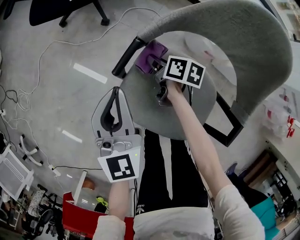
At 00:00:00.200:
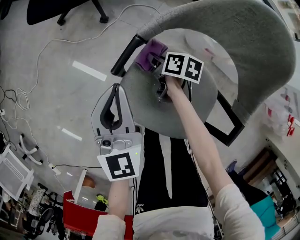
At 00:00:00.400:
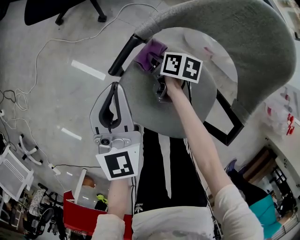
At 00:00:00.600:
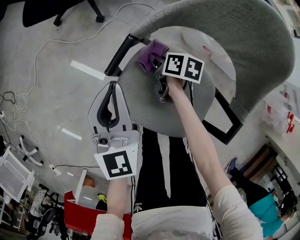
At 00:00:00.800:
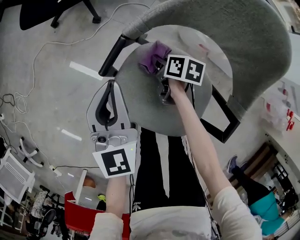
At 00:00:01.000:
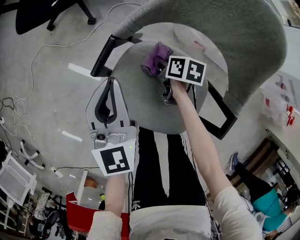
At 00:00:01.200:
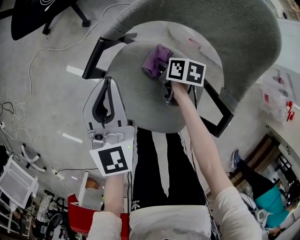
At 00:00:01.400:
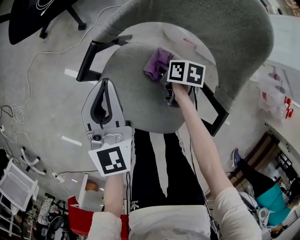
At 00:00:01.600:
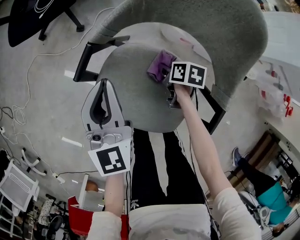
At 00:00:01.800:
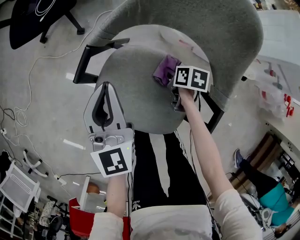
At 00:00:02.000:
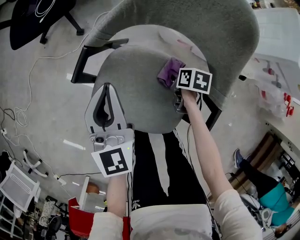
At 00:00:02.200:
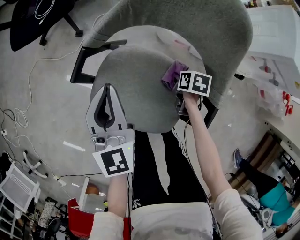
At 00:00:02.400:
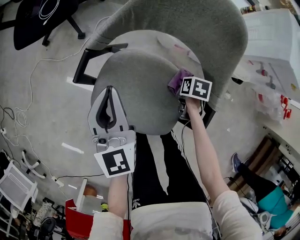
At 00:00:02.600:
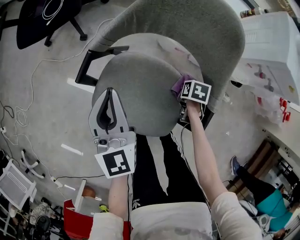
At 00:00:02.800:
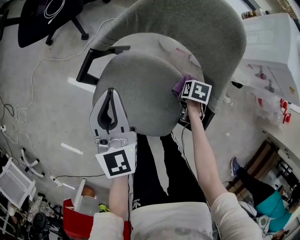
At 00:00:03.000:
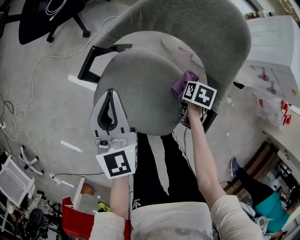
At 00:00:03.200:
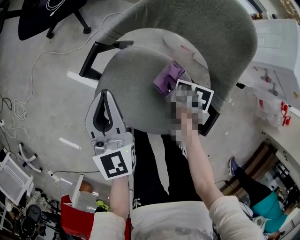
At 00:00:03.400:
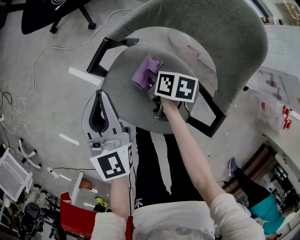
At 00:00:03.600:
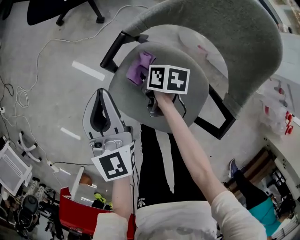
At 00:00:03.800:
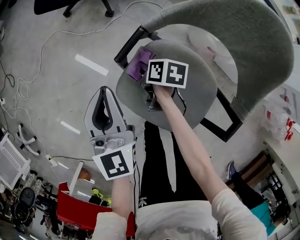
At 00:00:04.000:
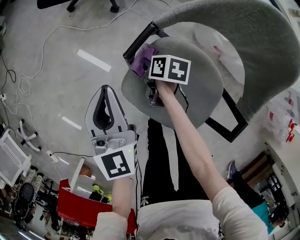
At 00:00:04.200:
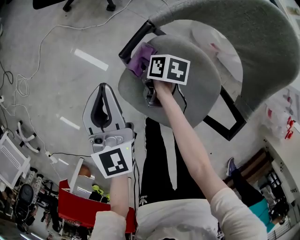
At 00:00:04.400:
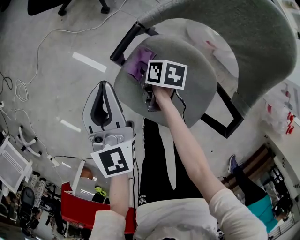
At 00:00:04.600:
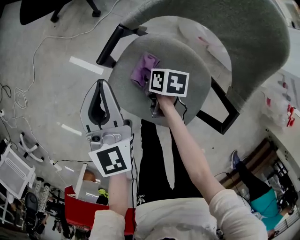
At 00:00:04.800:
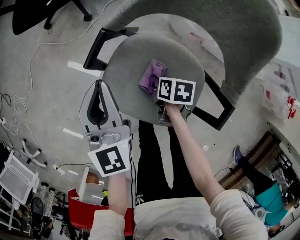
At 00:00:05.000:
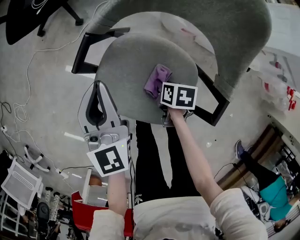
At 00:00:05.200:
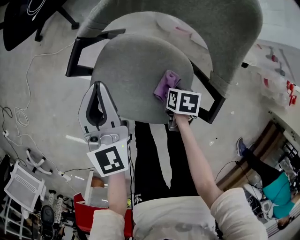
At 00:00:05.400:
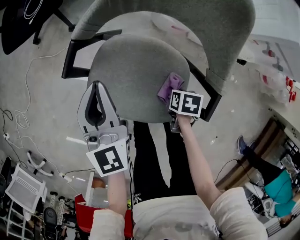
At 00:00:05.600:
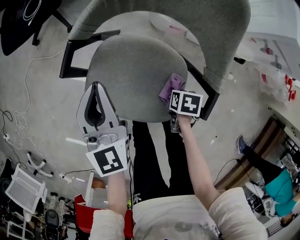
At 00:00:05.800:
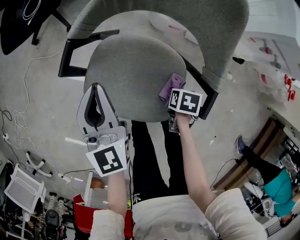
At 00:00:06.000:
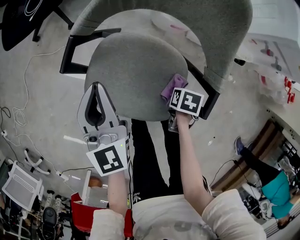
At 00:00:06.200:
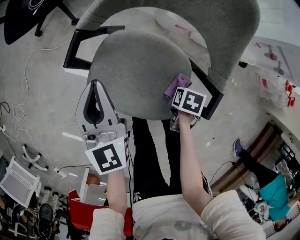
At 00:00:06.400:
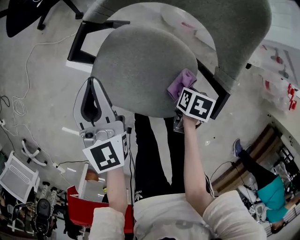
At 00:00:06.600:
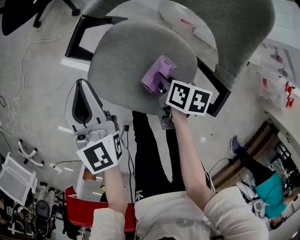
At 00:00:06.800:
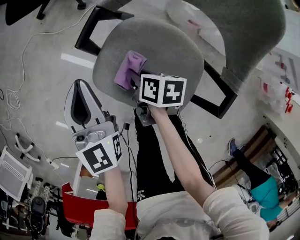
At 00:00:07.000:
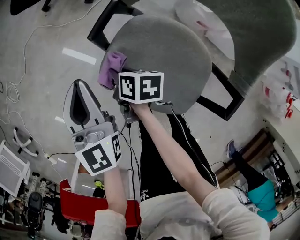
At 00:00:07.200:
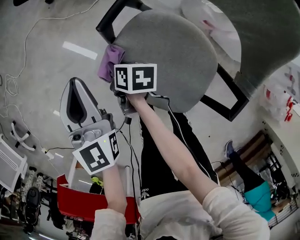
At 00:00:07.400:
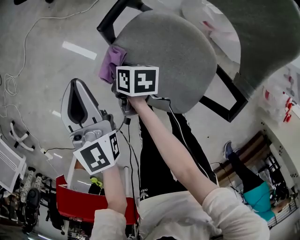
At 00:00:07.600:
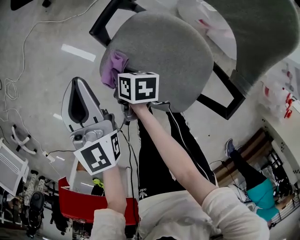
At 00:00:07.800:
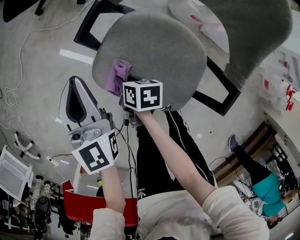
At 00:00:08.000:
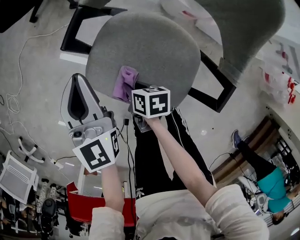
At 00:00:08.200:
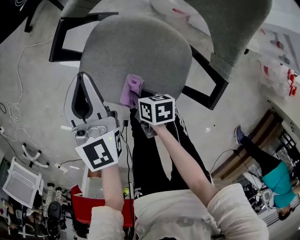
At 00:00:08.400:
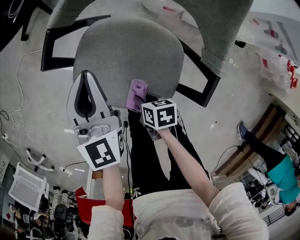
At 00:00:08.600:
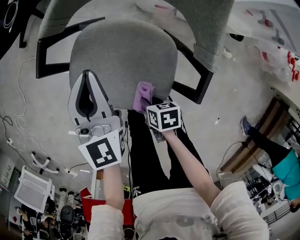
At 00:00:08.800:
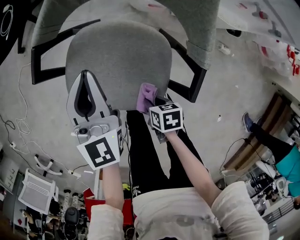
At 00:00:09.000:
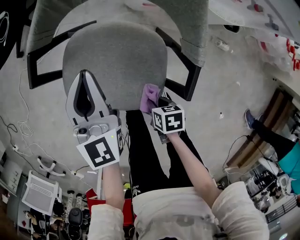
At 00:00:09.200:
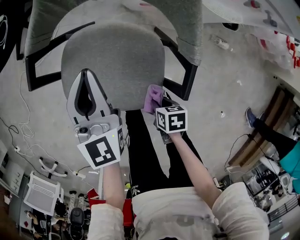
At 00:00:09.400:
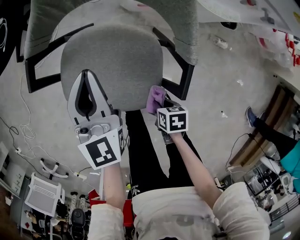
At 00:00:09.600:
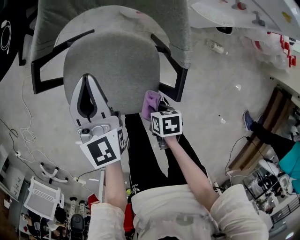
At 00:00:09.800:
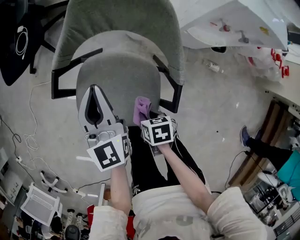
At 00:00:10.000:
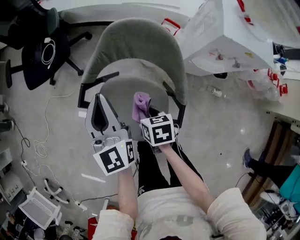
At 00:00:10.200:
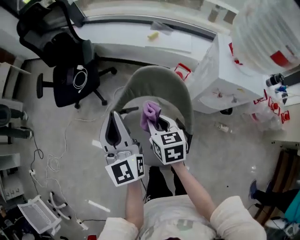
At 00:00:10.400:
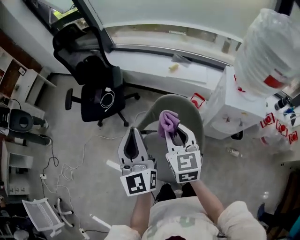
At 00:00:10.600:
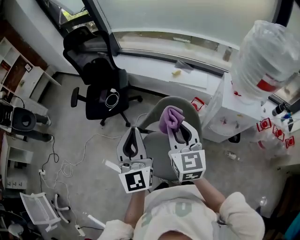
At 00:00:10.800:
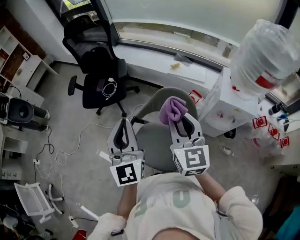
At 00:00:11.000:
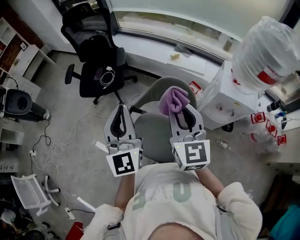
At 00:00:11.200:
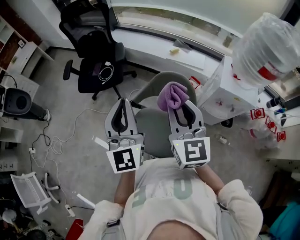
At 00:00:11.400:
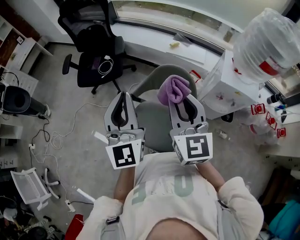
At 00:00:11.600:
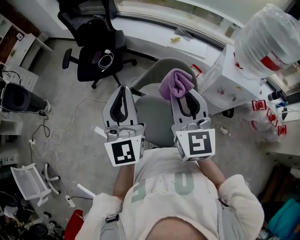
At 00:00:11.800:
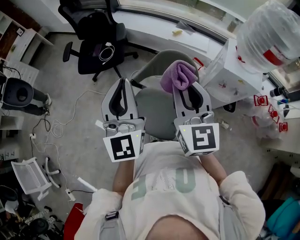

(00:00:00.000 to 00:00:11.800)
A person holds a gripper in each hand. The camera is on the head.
00:00:00.000 - 00:00:01.400: The left gripper shifts roughly 5 cm to the right, while the right gripper shifts roughly 15 cm to the right and backward.
00:00:01.400 - 00:00:03.000: The left gripper changes place by roughly 5 cm. The right gripper shifts by approximately 15 cm, and rotates some 20 degrees.
00:00:03.000 - 00:00:04.400: The right gripper changes place by some 30 cm, and changes its angle by roughly 30 degrees, while the left gripper ends up roughly 15 cm from where it was.
00:00:04.400 - 00:00:06.000: The right gripper changes place by about 35 cm, and points its fingers roughly 30 degrees further downward. Meanwhile the left gripper changes place by some 15 cm.
00:00:06.000 - 00:00:07.400: The right gripper shifts by approximately 35 cm, and points its fingers approximately 40 degrees further upward, while the left gripper ends up about 20 cm from where it was.
00:00:07.400 - 00:00:08.800: The right gripper heads backward and to the right, covering roughly 30 cm; the left gripper heads to the right, covering about 25 cm, and swivels about 30 degrees.
00:00:08.800 - 00:00:10.400: The left gripper is displaced upward by approximately 40 cm, and swivels roughly 30 degrees; the right gripper goes about 60 cm upward and forward, and tilts its fingers roughly 50 degrees upward.
00:00:10.400 - 00:00:11.800: The grippers both shift upward and backward by about 15 cm.

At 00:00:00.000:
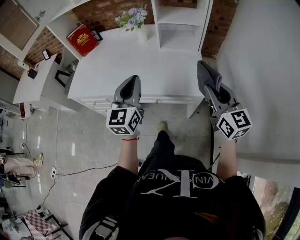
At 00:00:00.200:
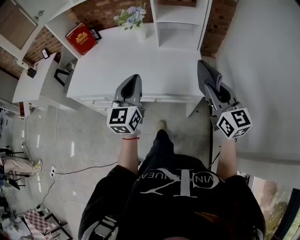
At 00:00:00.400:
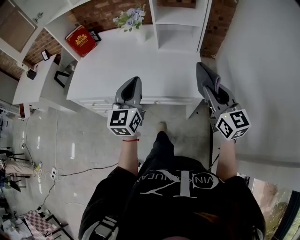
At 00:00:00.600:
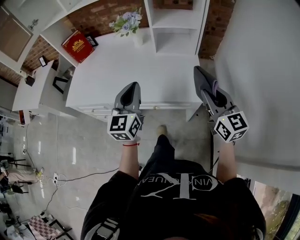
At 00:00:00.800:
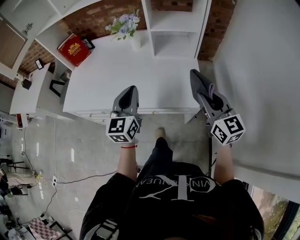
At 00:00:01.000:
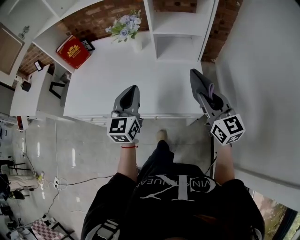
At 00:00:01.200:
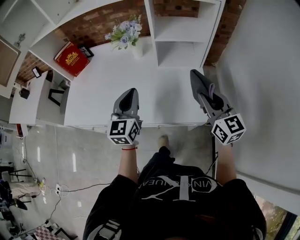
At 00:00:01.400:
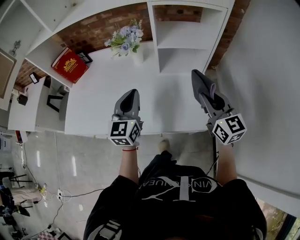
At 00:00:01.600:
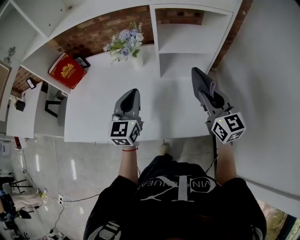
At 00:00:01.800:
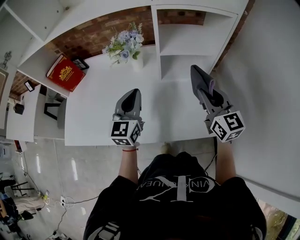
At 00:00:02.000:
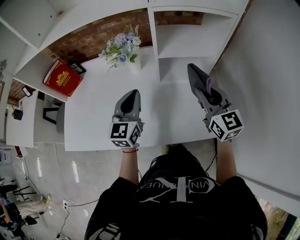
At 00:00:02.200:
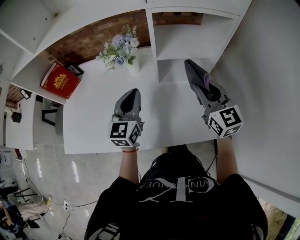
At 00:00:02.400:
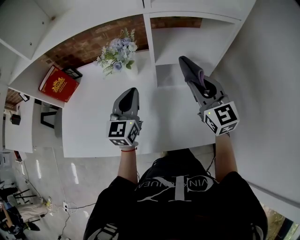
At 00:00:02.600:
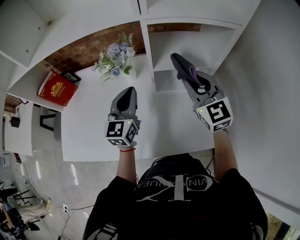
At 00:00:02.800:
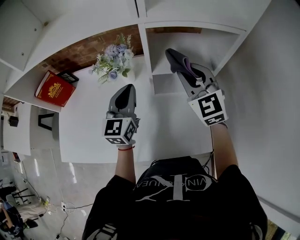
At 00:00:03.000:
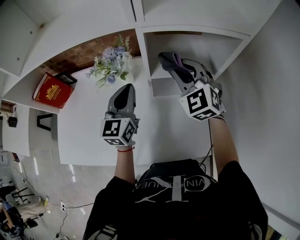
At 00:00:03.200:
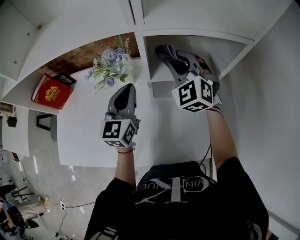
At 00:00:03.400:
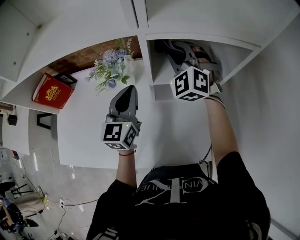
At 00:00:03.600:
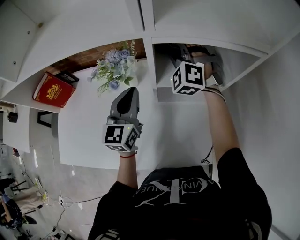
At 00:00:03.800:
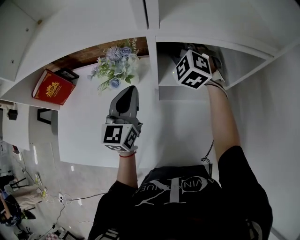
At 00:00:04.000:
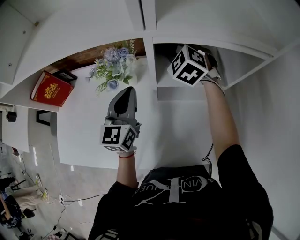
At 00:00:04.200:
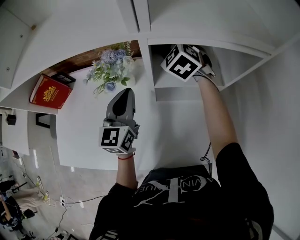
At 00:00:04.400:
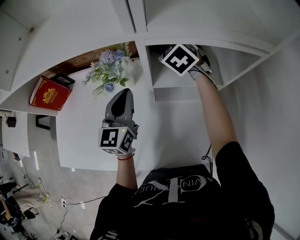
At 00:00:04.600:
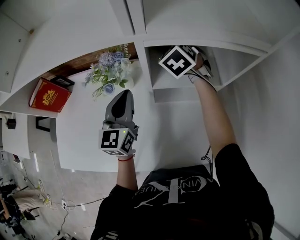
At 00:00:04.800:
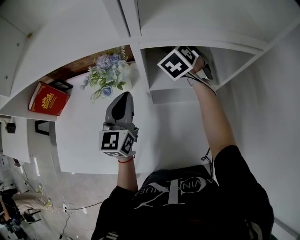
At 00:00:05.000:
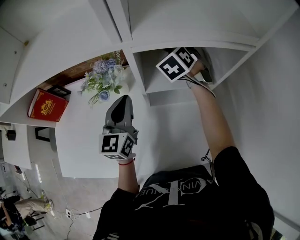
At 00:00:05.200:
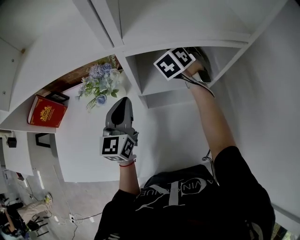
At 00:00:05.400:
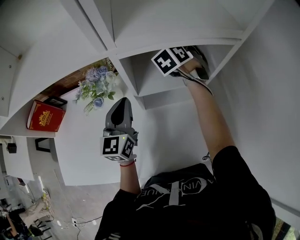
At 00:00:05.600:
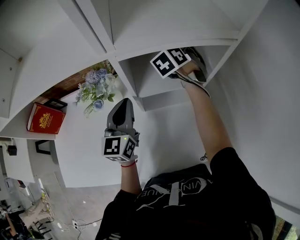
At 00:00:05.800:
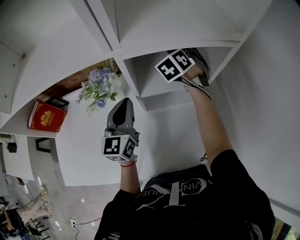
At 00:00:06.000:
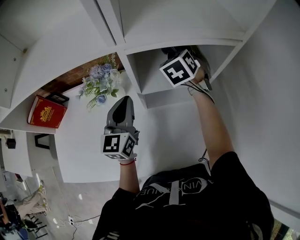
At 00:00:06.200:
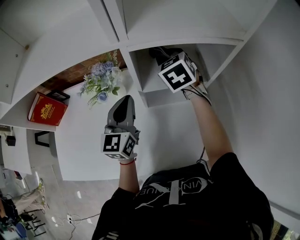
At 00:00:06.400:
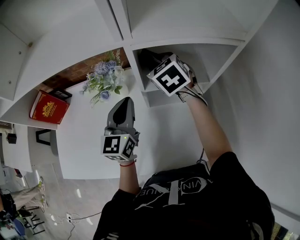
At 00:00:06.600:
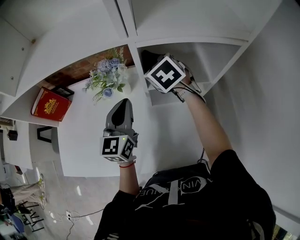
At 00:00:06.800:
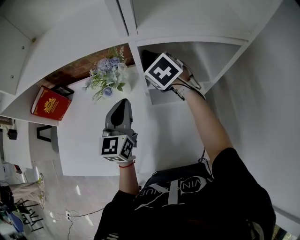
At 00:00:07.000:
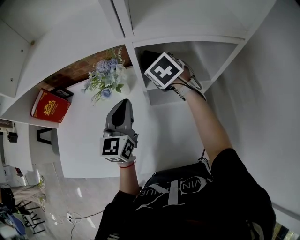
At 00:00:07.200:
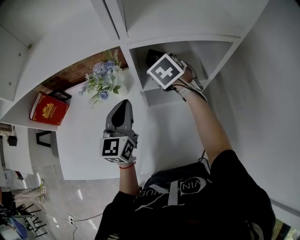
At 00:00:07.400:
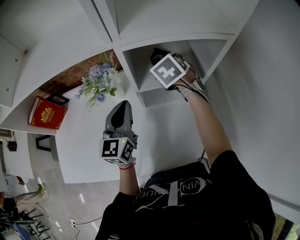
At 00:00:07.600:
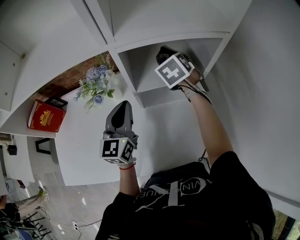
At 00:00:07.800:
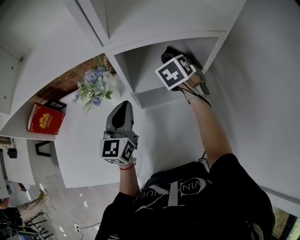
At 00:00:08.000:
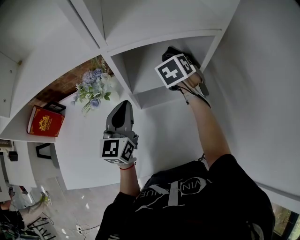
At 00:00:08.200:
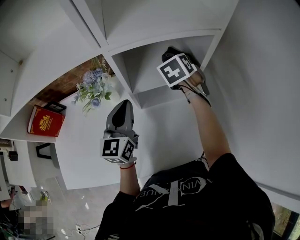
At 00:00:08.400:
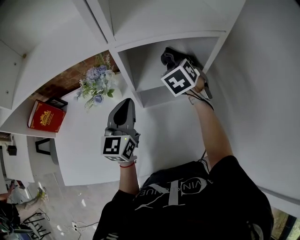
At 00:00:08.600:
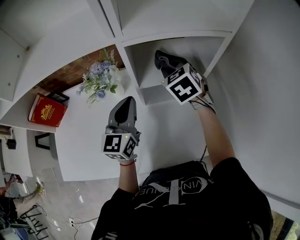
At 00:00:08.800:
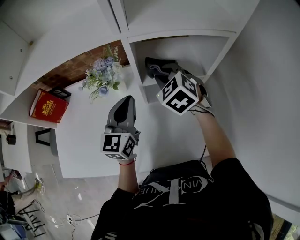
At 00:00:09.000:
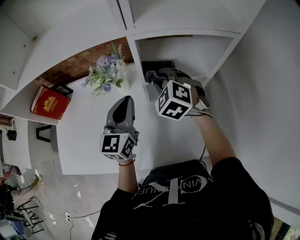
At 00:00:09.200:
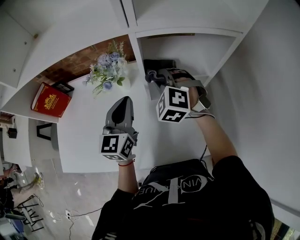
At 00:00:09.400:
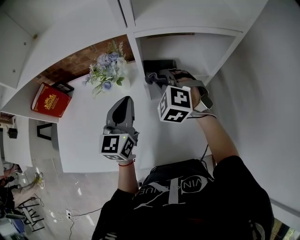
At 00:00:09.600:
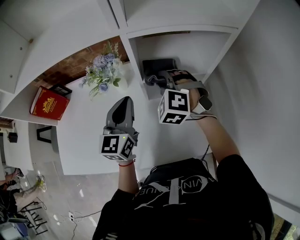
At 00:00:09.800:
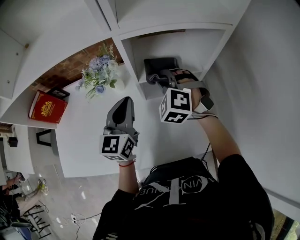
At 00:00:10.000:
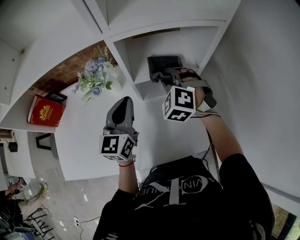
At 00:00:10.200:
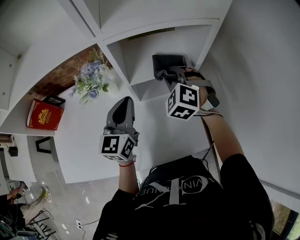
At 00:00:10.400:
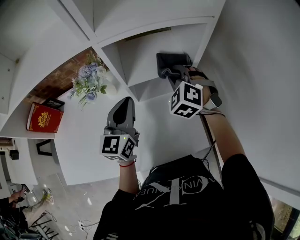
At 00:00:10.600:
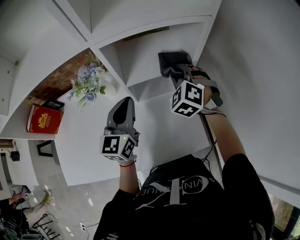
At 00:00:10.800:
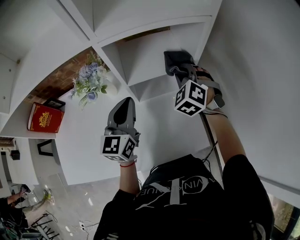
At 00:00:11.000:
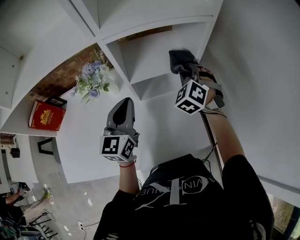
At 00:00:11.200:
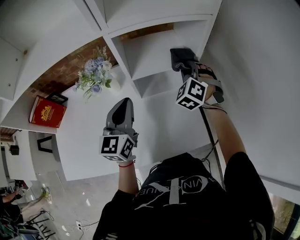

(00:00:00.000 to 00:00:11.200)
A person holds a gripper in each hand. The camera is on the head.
00:00:00.000 - 00:00:01.600: The grippers both shift forward by approximately 25 cm.
00:00:01.600 - 00:00:03.200: The left gripper is displaced forward by roughly 15 cm. Meanwhile the right gripper is displaced forward by approximately 25 cm, and twists about 50 degrees counterclockwise, seen from behind.
00:00:03.200 - 00:00:04.800: The right gripper is displaced forward and downward by approximately 15 cm, and turns by some 30 degrees.
00:00:04.800 - 00:00:06.400: The right gripper is displaced backward by about 10 cm, and goes to the right and returns, approximately 10 cm each way.
00:00:06.400 - 00:00:08.000: The right gripper shifts by some 15 cm, and rotates some 30 degrees.
00:00:08.000 - 00:00:09.600: The right gripper heads to the left and backward, covering approximately 15 cm, and rolls counterclockwise, seen from behind, by roughly 50 degrees.
00:00:09.600 - 00:00:11.200: The right gripper heads to the right, covering about 15 cm, and rotates about 30 degrees.
